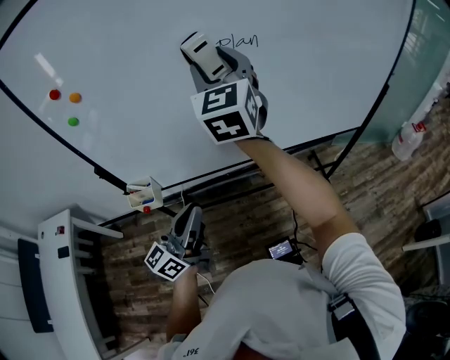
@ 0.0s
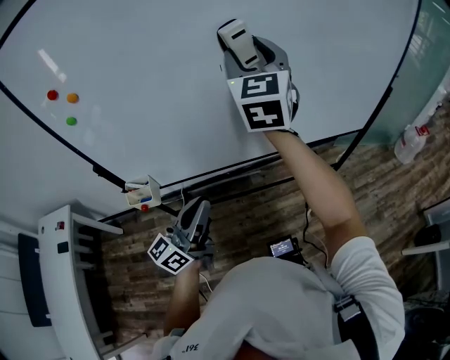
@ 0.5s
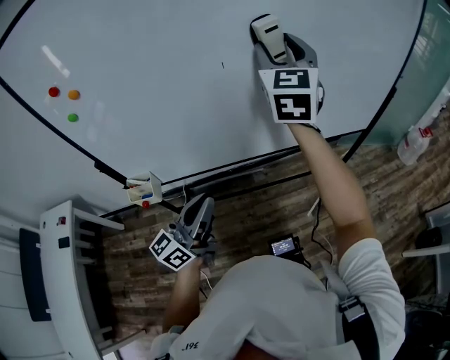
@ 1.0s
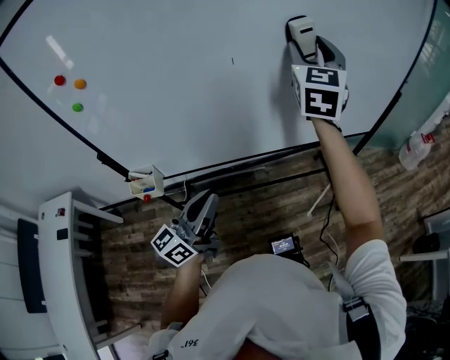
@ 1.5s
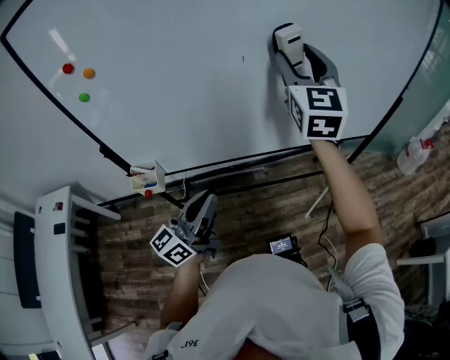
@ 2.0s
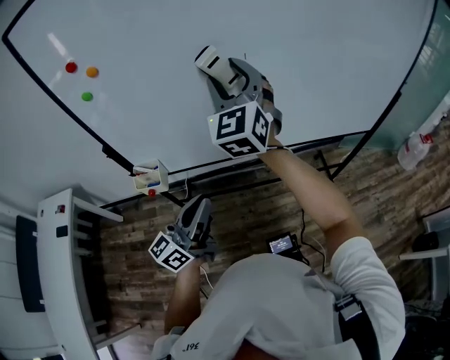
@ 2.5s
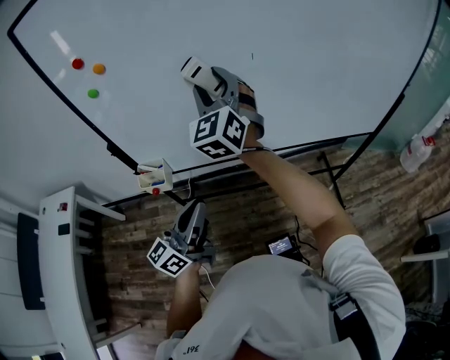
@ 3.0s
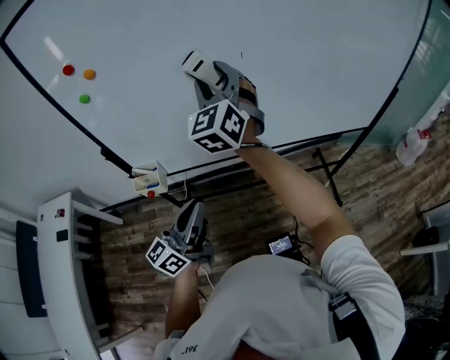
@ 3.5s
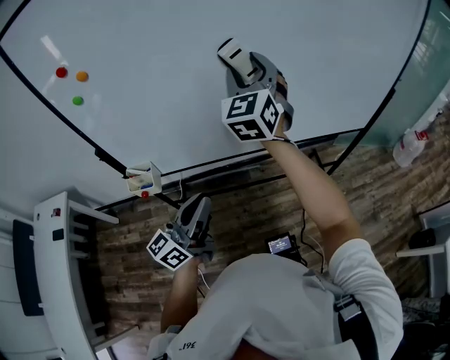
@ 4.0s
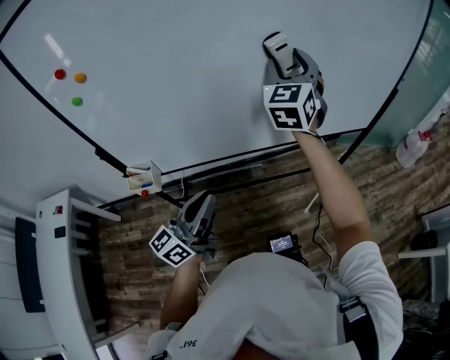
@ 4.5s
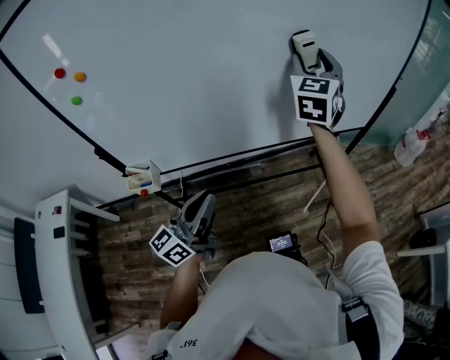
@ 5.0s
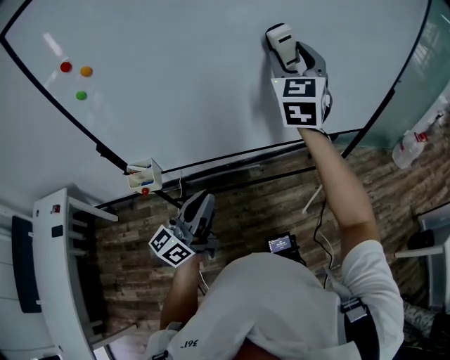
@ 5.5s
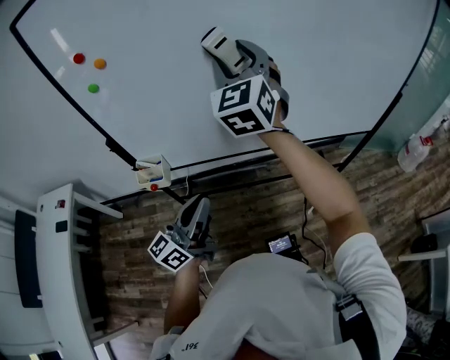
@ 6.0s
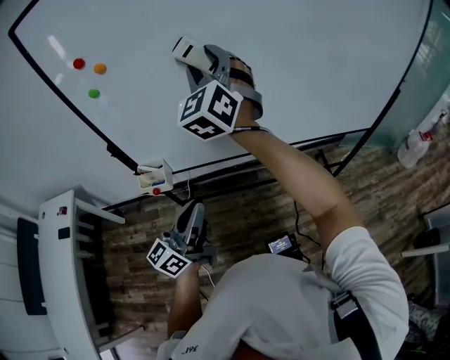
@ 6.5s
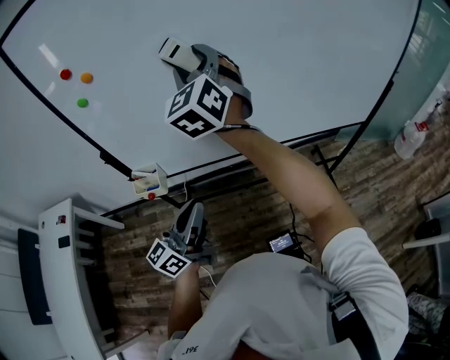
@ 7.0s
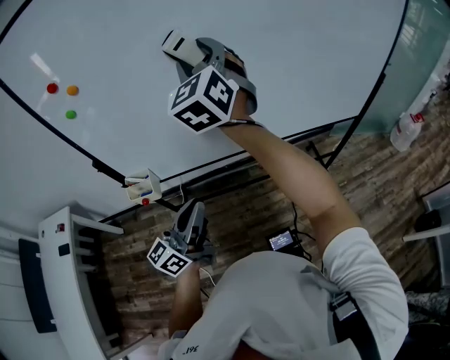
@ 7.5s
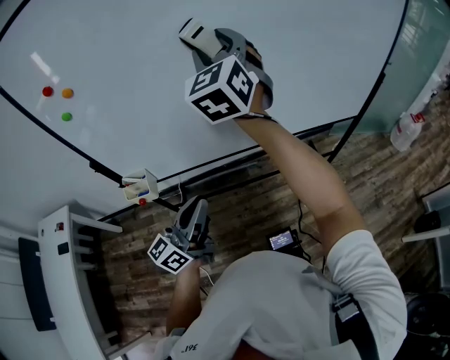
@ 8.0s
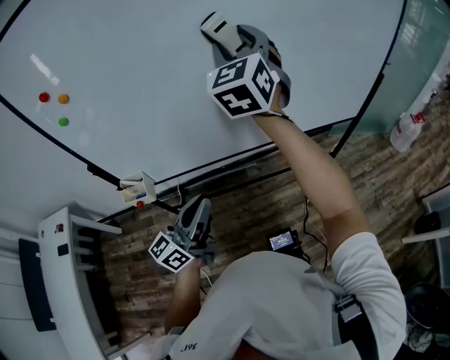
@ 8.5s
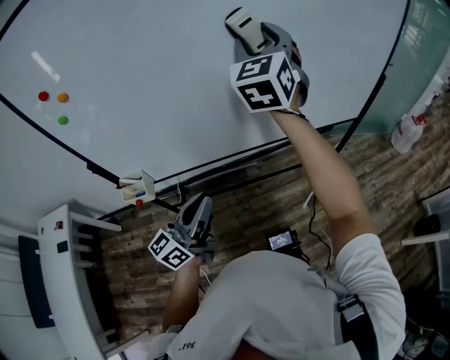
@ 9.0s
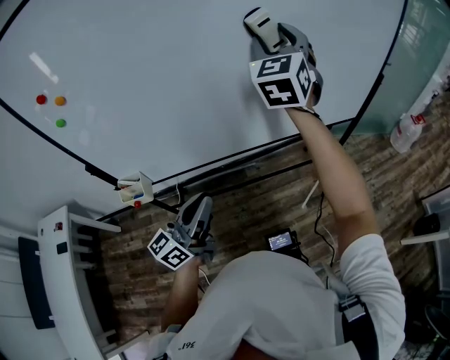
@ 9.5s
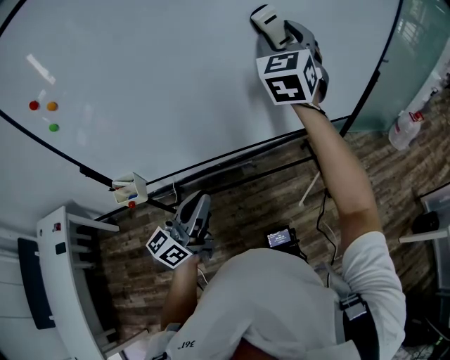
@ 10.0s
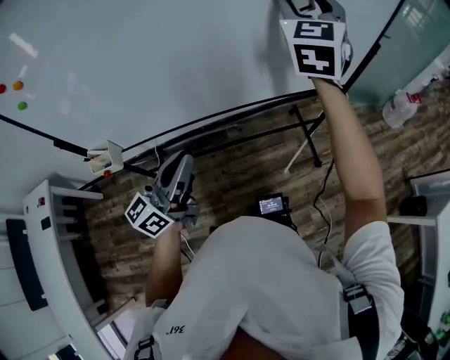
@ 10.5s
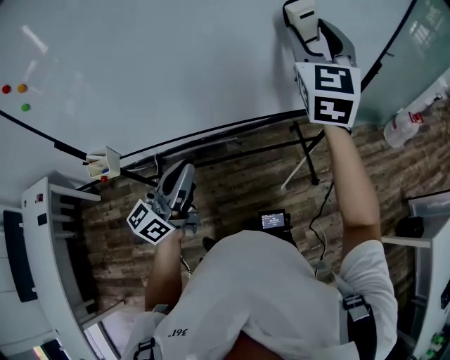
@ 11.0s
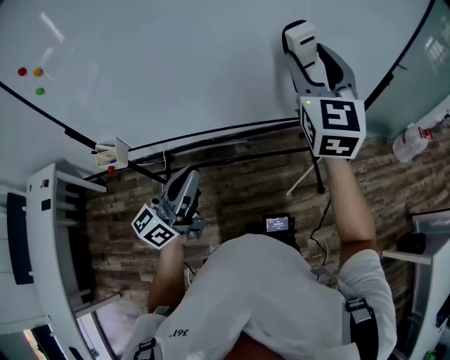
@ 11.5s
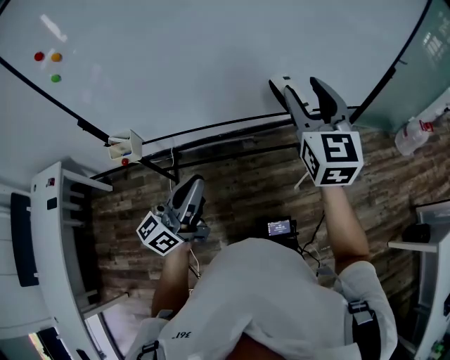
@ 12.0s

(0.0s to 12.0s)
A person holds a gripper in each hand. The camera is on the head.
0.0s - 2.0s: The right gripper moves to the right, some 15 cm.
2.0s - 4.0s: The right gripper goes some 10 cm to the left.
4.0s - 6.0s: The right gripper travels backward by about 5 cm, and goes to the right and returns, roughly 15 cm each way.
6.0s - 8.0s: The left gripper shifts by about 5 cm. Meanwhile the right gripper goes about 5 cm to the right.
8.0s - 10.0s: The right gripper goes roughly 20 cm to the right and forward; the left gripper shifts about 5 cm to the right.
10.0s - 12.0s: The left gripper shifts roughly 5 cm backward. The right gripper goes some 20 cm backward and downward, and changes its angle by some 30 degrees.

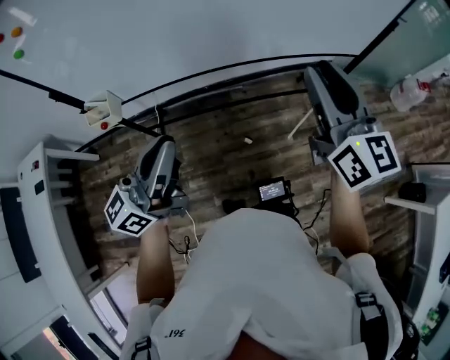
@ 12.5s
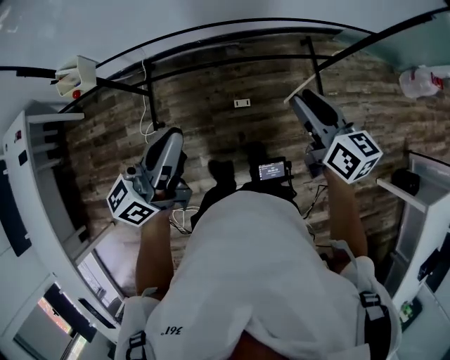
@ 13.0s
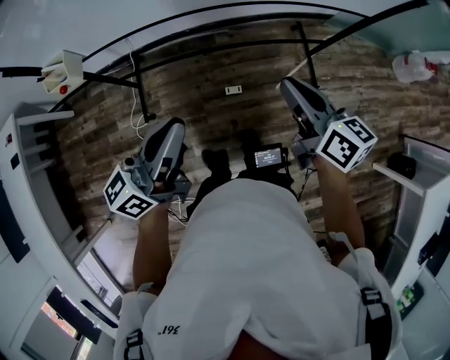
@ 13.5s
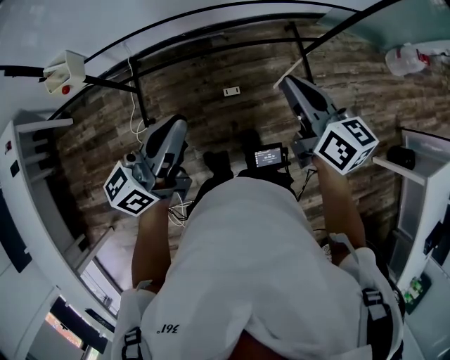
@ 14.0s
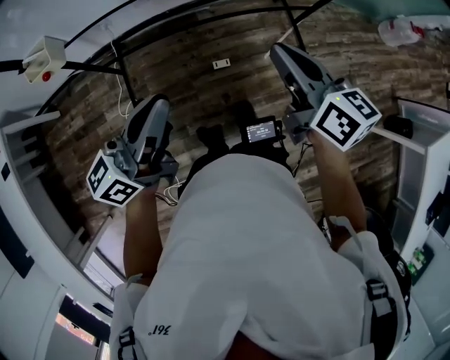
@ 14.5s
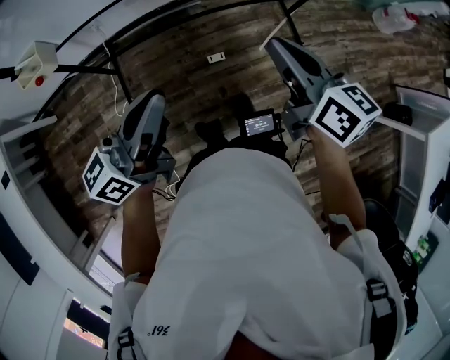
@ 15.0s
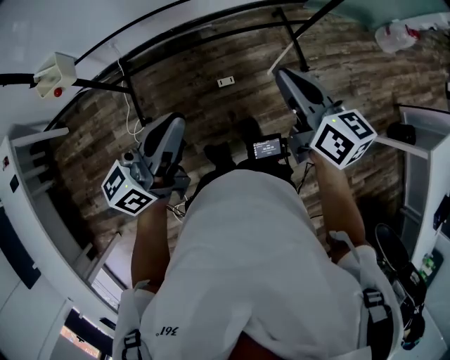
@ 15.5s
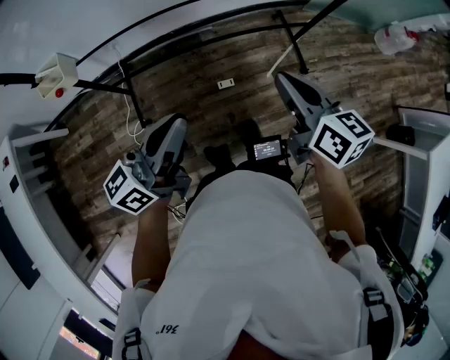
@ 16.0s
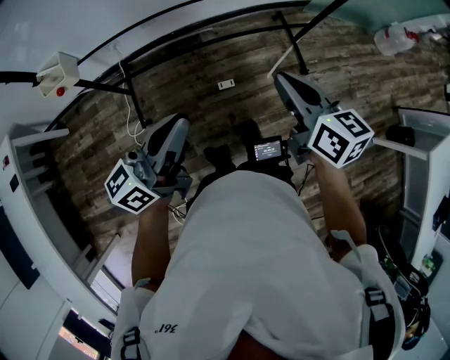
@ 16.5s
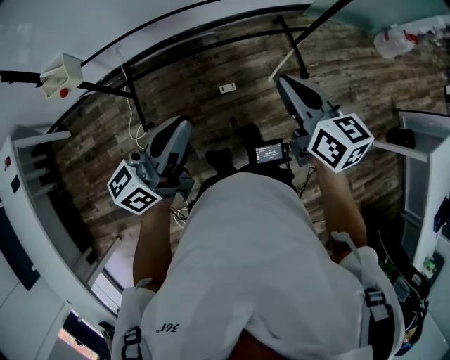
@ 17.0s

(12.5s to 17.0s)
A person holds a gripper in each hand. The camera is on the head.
12.5s - 14.5s: The left gripper heads downward, covering about 10 cm. The right gripper shifts approximately 20 cm downward and backward, changes its angle by about 30 degrees, and closes its fingers.
14.5s - 17.0s: The grippers make only small movements.

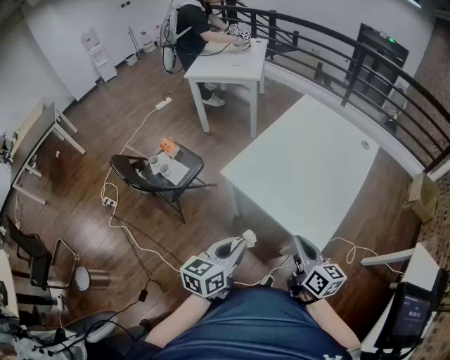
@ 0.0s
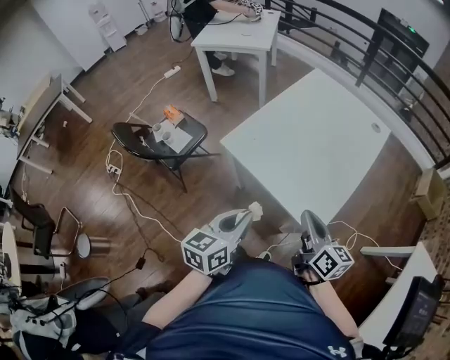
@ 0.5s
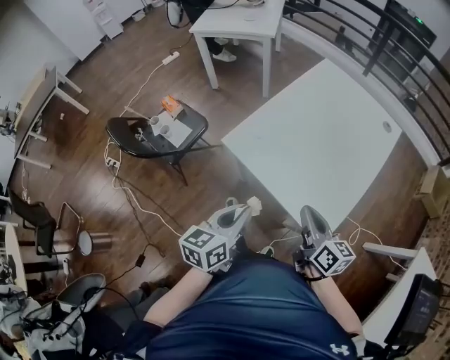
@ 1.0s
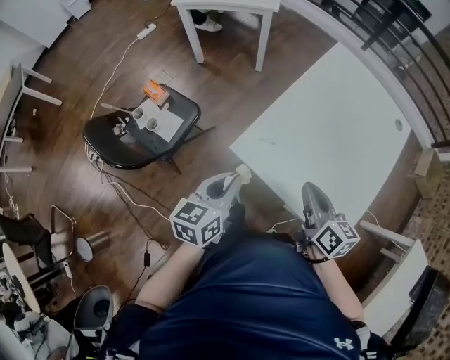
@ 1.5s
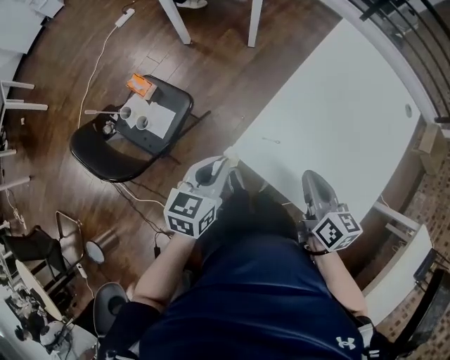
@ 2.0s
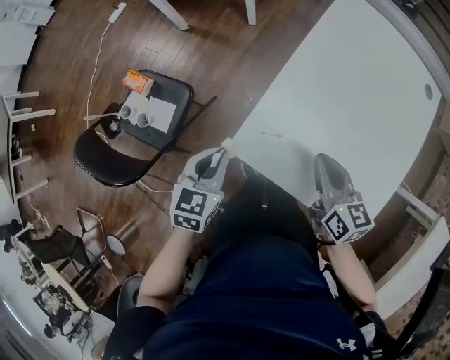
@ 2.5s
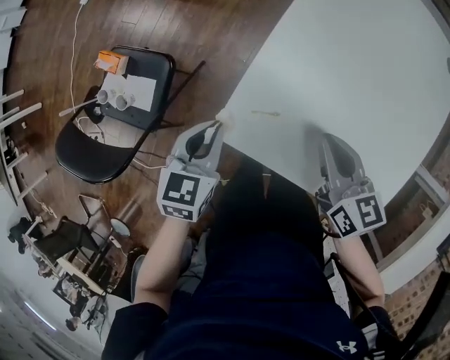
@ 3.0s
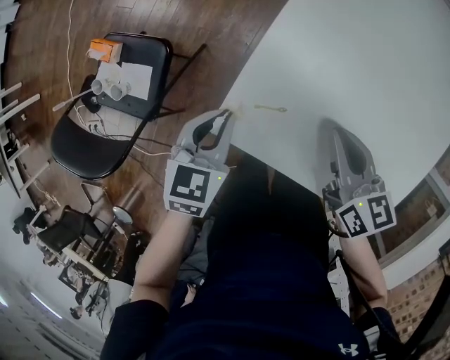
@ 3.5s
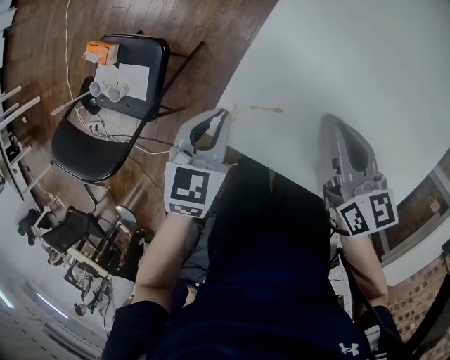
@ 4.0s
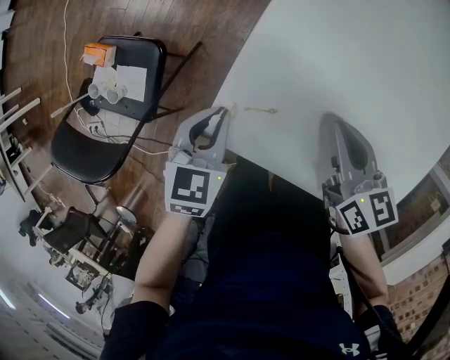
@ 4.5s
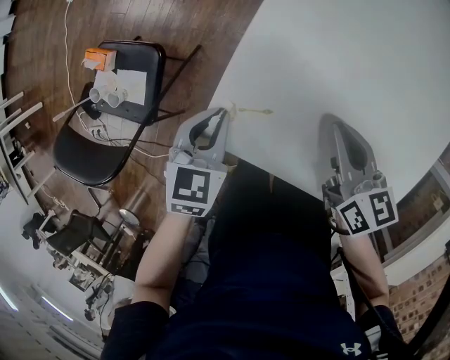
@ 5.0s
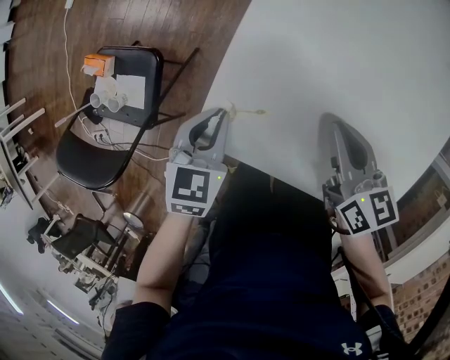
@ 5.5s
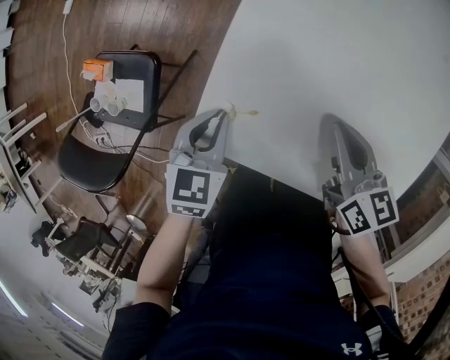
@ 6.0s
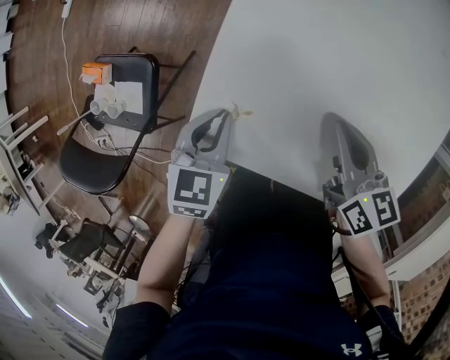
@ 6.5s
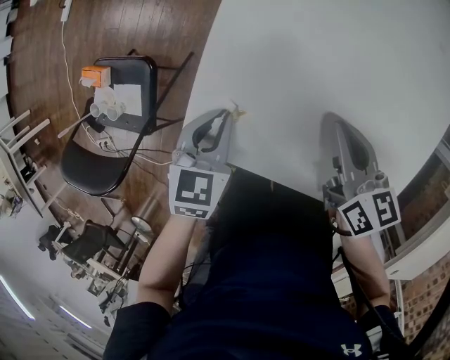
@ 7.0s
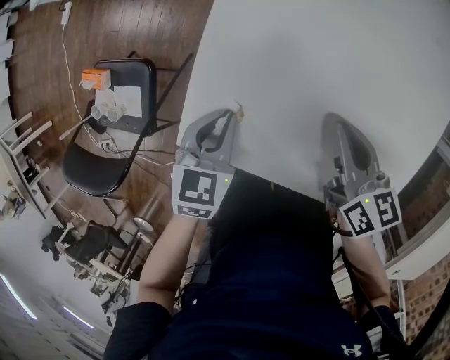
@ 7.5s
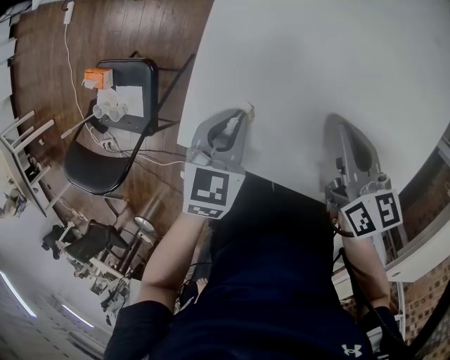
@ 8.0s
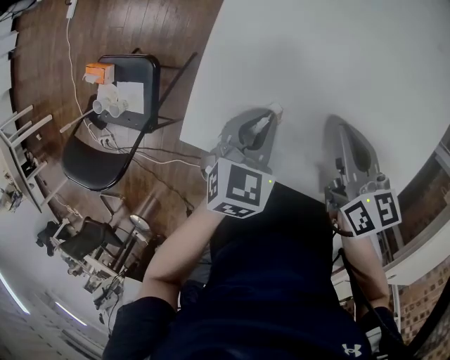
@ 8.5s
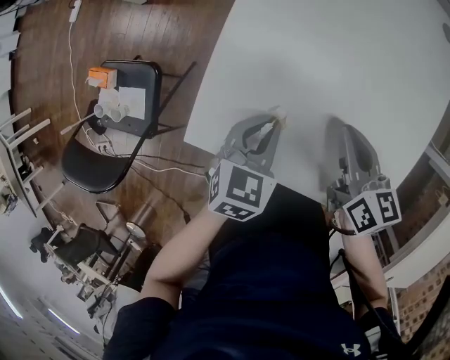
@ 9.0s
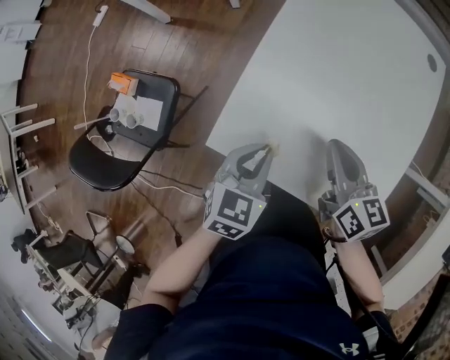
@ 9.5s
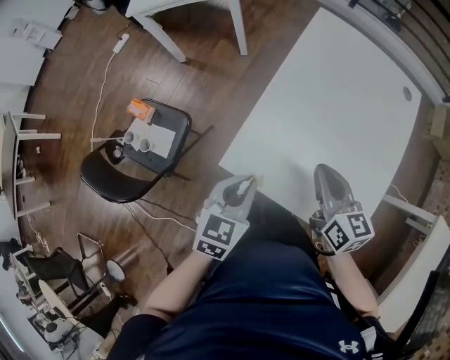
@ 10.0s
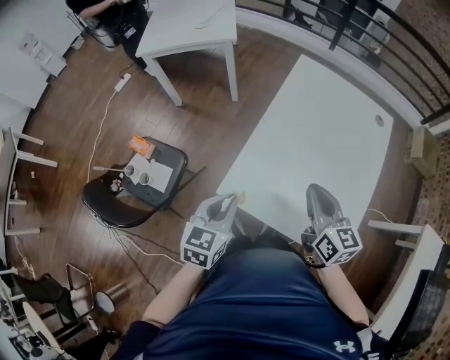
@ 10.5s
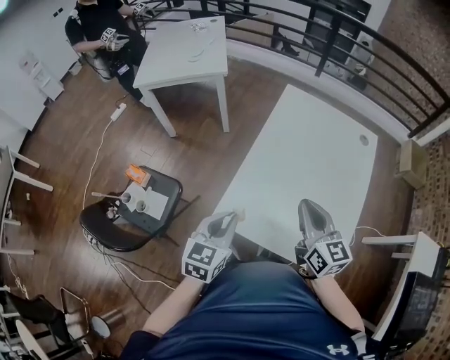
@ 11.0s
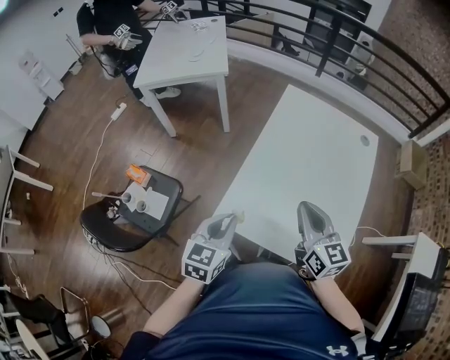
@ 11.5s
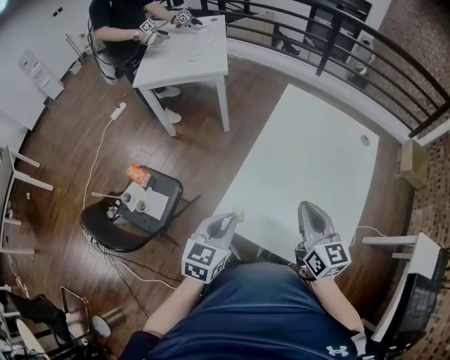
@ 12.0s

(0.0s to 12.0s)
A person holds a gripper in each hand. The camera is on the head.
0.0s - 2.0s: Both grippers move forward and to the left, some 35 cm.
2.0s - 4.0s: The right gripper goes approximately 15 cm downward and forward, while the left gripper travels downward by approximately 15 cm, and changes its angle by about 20 degrees.
4.0s - 6.0s: The right gripper moves to the right, roughly 5 cm.
6.0s - 8.0s: The left gripper travels to the right by some 5 cm.
8.0s - 10.0s: The left gripper goes about 15 cm upward and backward. The right gripper goes about 15 cm upward and to the left.
10.0s - 12.0s: The two grippers go roughly 10 cm upward.
